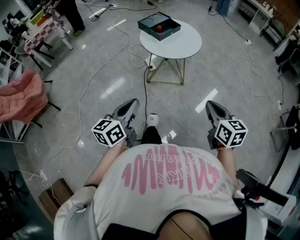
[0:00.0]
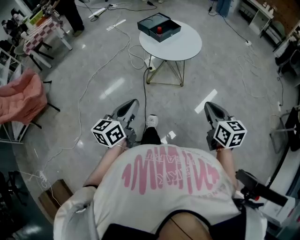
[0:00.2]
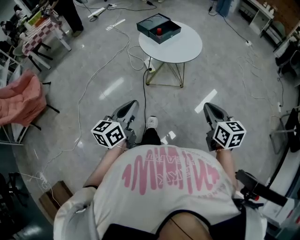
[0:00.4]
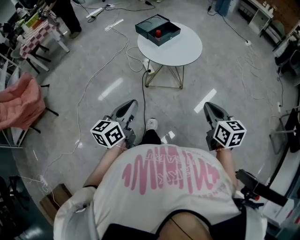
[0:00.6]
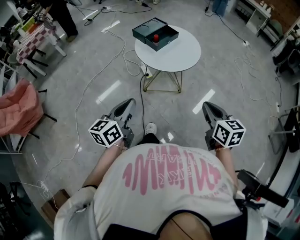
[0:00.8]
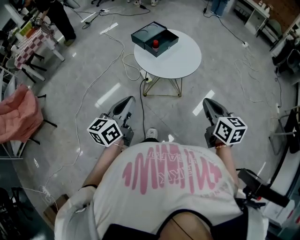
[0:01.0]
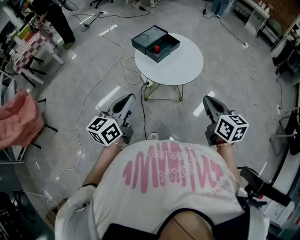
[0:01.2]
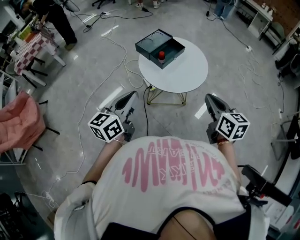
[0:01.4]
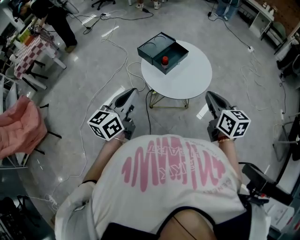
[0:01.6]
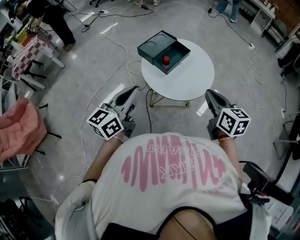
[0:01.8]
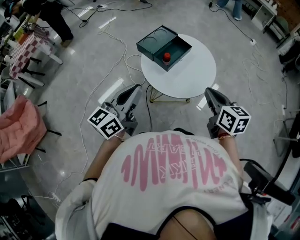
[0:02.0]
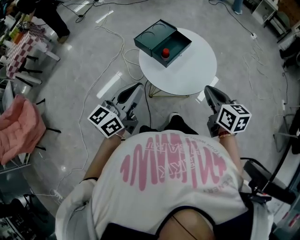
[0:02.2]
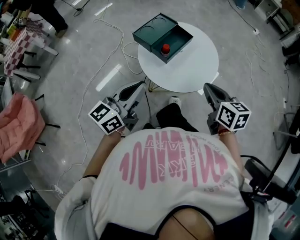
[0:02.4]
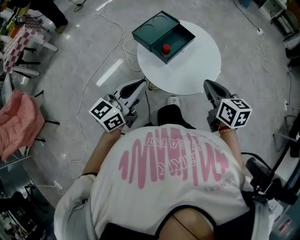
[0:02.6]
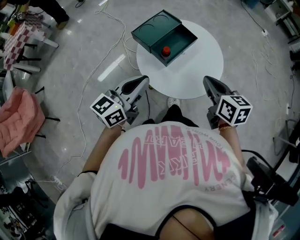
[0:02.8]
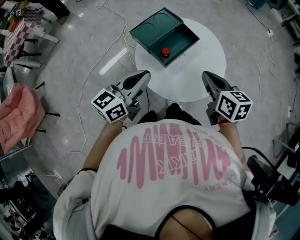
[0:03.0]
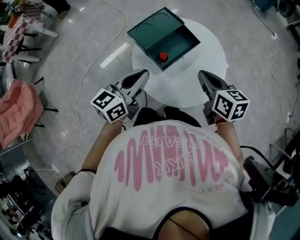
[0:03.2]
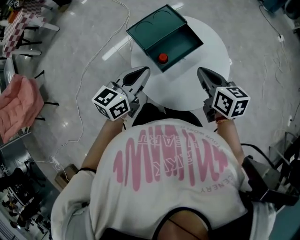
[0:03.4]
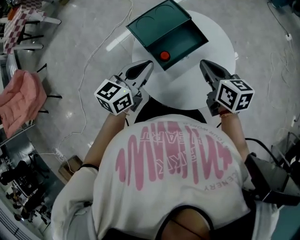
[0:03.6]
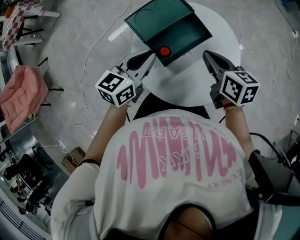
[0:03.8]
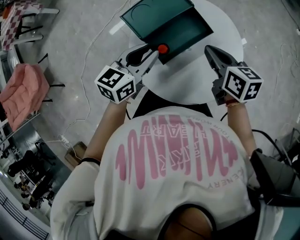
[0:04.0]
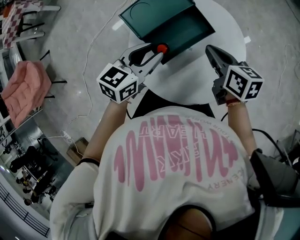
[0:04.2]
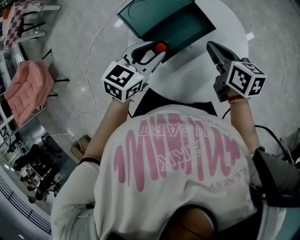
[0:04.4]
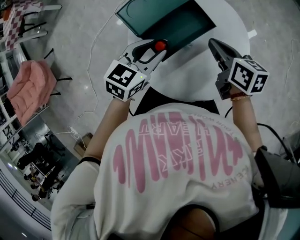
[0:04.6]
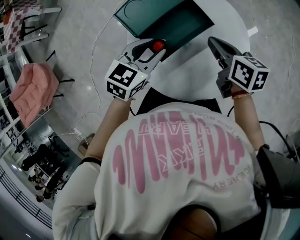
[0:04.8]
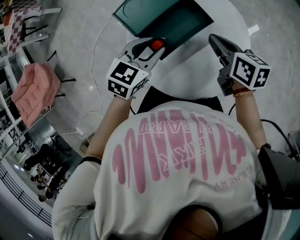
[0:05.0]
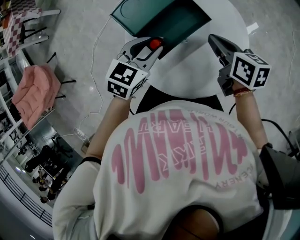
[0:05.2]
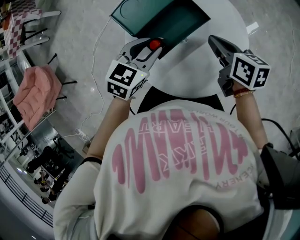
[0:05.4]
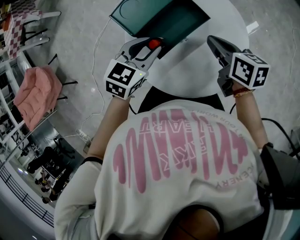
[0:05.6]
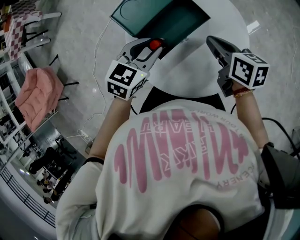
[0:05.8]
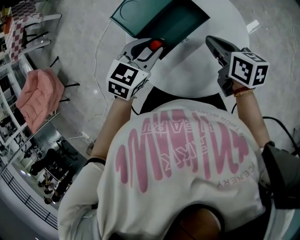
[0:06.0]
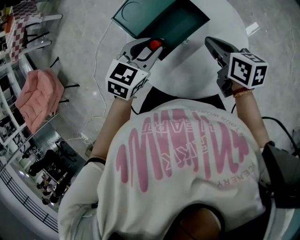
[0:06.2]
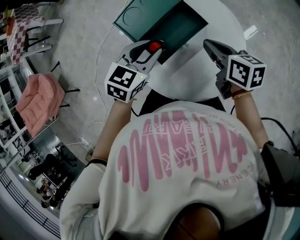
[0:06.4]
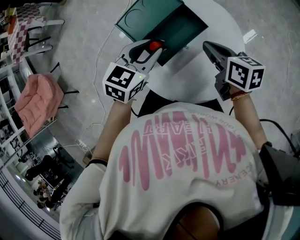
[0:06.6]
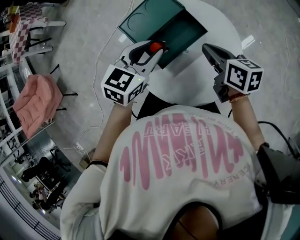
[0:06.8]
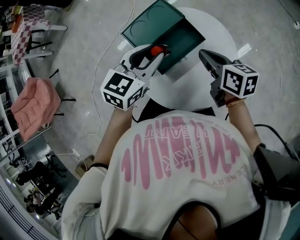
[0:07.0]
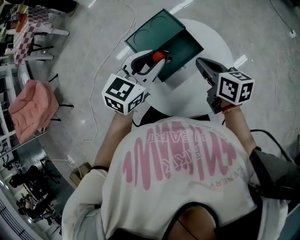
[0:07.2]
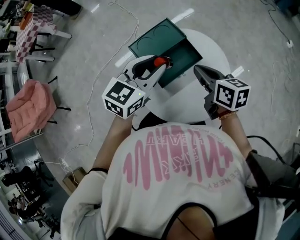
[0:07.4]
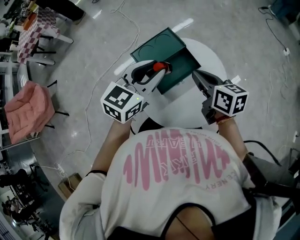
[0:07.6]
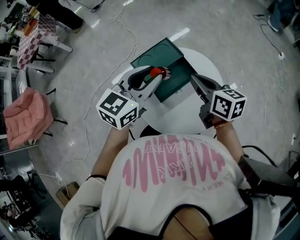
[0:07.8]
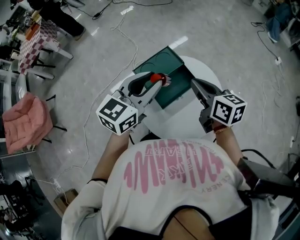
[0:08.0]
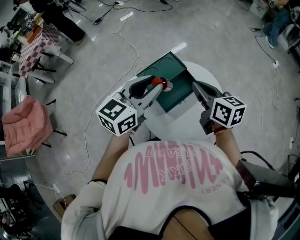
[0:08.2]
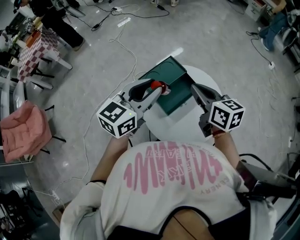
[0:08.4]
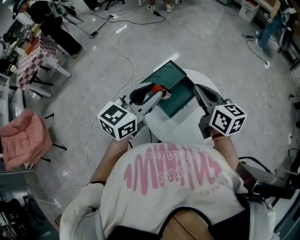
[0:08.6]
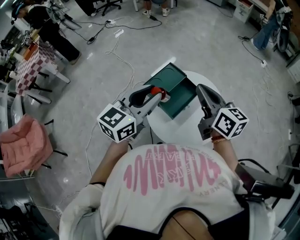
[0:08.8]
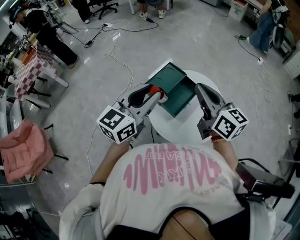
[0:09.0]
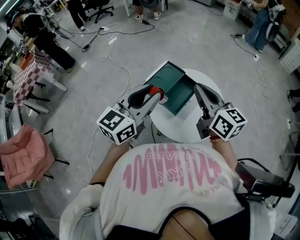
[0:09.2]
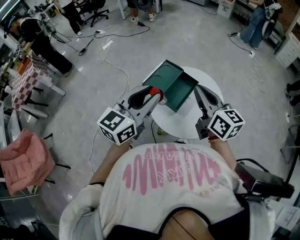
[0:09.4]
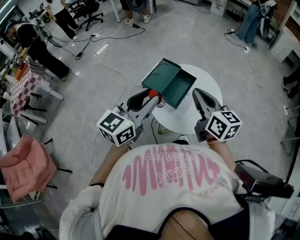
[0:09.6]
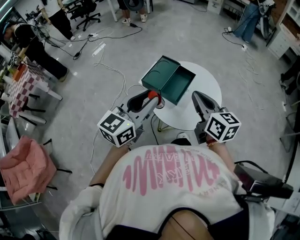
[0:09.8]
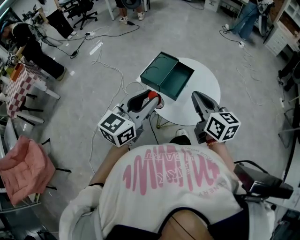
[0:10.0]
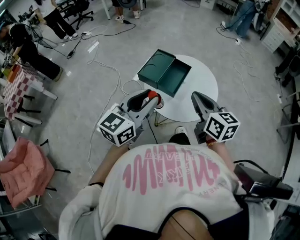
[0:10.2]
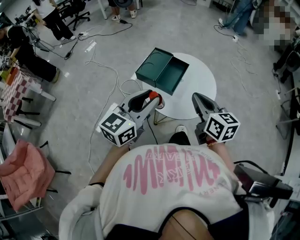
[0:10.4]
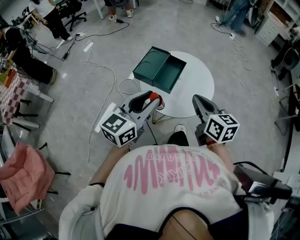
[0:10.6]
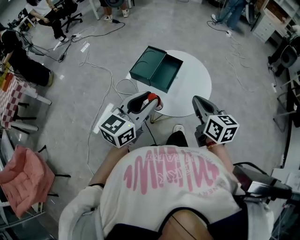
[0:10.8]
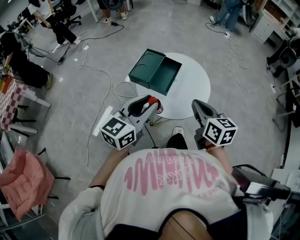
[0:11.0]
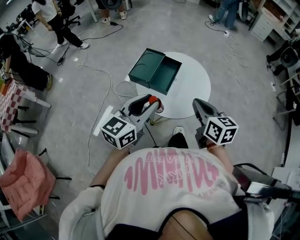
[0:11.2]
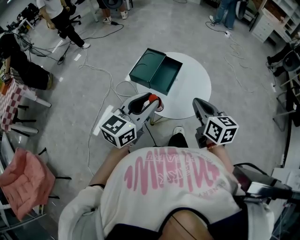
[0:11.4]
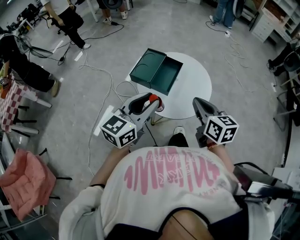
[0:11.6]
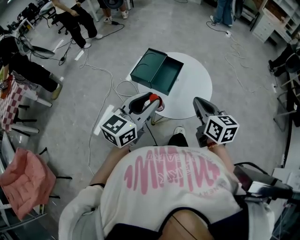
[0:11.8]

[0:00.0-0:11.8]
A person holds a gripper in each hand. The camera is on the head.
0:00.0 to 0:01.4: Both grippers travel together forward, roughly 30 cm.
0:01.4 to 0:03.0: Both grippers travel together forward, roughly 25 cm.
0:03.0 to 0:04.4: The grippers both shift forward and downward by roughly 25 cm. The left gripper tips its fingers downward by some 30 degrees, and opens up. The right gripper changes its angle by some 20 degrees.
0:04.4 to 0:06.0: The grippers stay close to where they were, moving slightly.
0:06.0 to 0:07.4: The two grippers go approximately 15 cm upward. The left gripper turns by approximately 20 degrees.
0:07.4 to 0:08.8: The left gripper shifts roughly 20 cm upward, to the left and backward. The right gripper travels upward and to the left by some 20 cm, and swivels some 30 degrees.
0:08.8 to 0:10.4: Both grippers travel together backward, about 20 cm. The right gripper changes its angle by some 20 degrees.
0:10.4 to 0:11.8: The grippers move only a little.

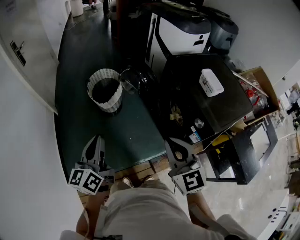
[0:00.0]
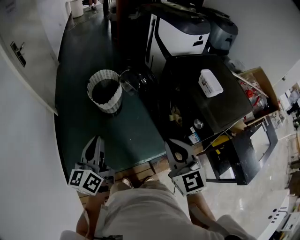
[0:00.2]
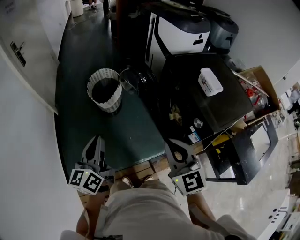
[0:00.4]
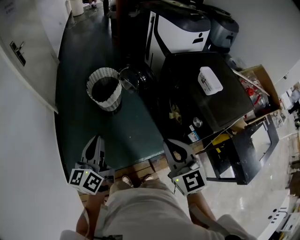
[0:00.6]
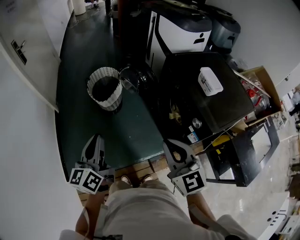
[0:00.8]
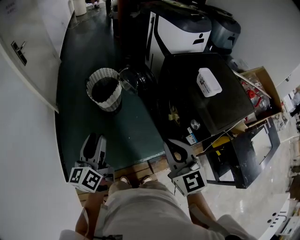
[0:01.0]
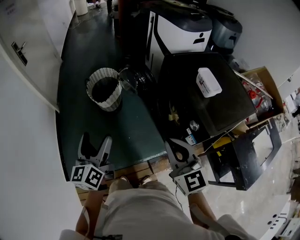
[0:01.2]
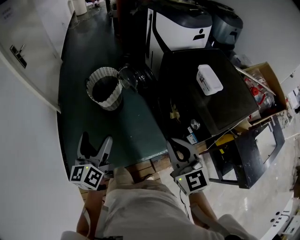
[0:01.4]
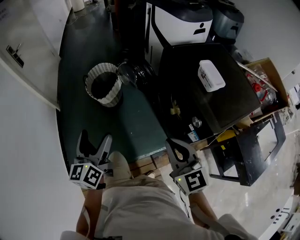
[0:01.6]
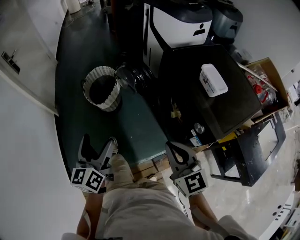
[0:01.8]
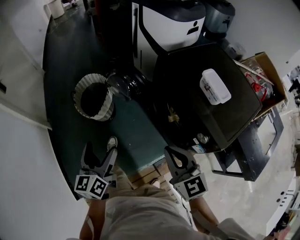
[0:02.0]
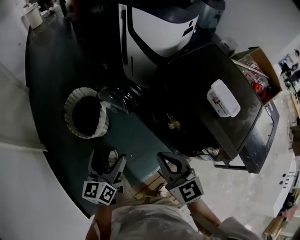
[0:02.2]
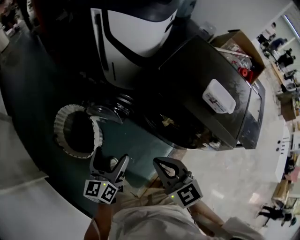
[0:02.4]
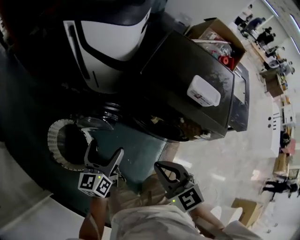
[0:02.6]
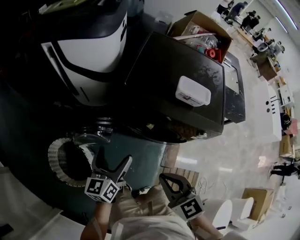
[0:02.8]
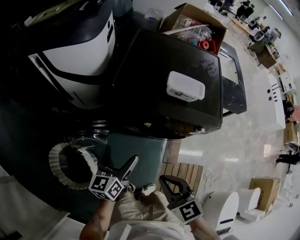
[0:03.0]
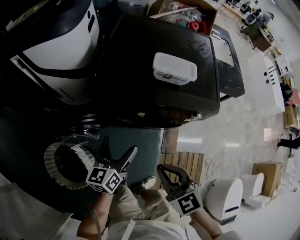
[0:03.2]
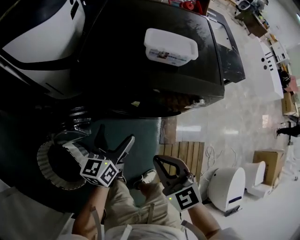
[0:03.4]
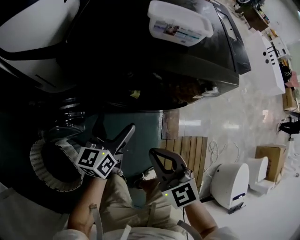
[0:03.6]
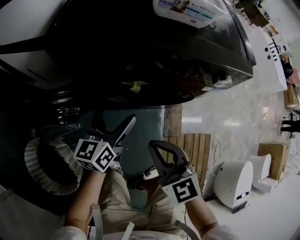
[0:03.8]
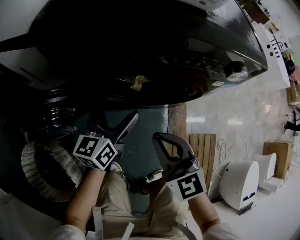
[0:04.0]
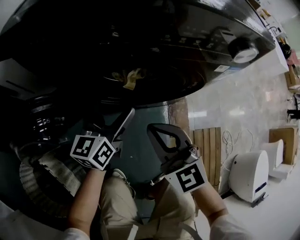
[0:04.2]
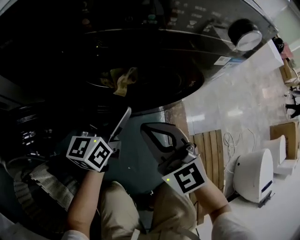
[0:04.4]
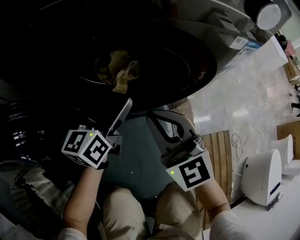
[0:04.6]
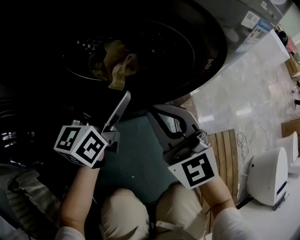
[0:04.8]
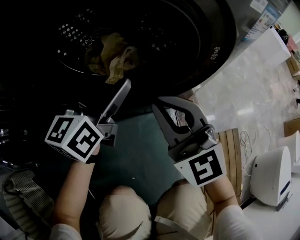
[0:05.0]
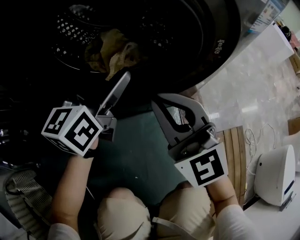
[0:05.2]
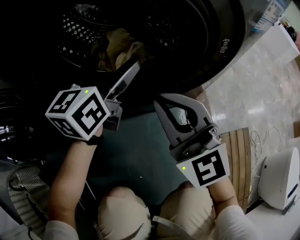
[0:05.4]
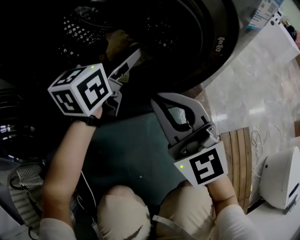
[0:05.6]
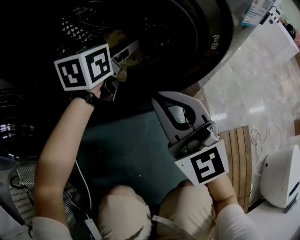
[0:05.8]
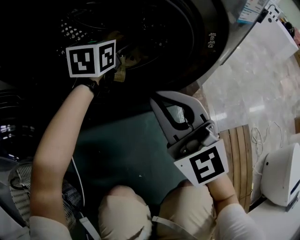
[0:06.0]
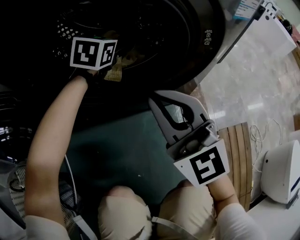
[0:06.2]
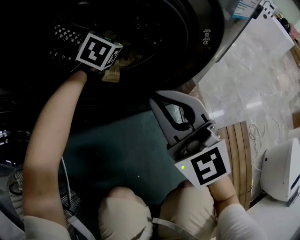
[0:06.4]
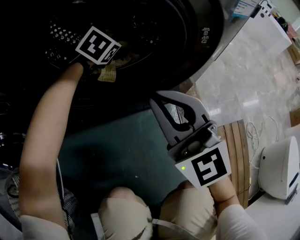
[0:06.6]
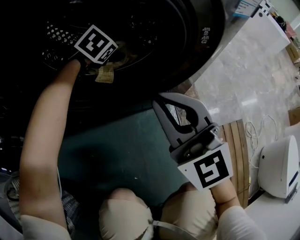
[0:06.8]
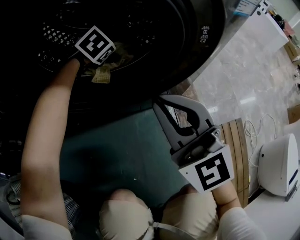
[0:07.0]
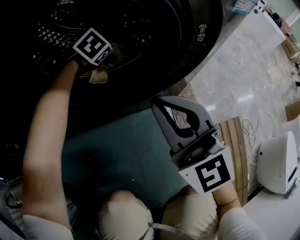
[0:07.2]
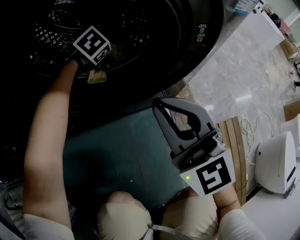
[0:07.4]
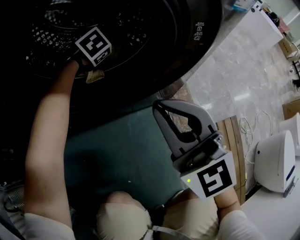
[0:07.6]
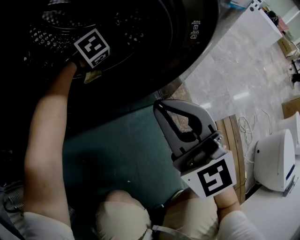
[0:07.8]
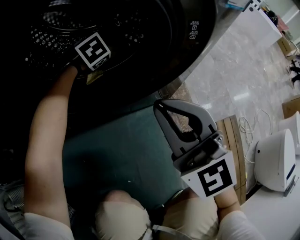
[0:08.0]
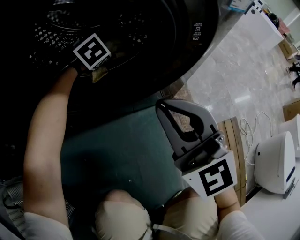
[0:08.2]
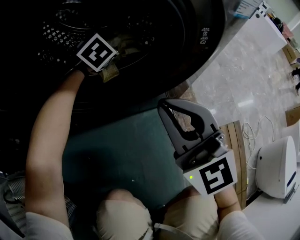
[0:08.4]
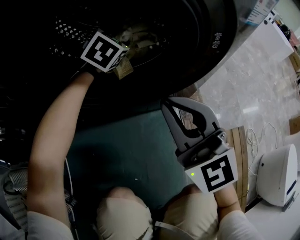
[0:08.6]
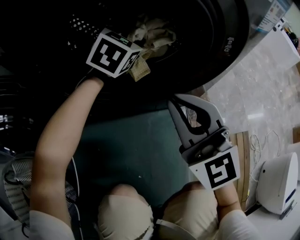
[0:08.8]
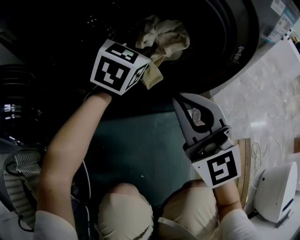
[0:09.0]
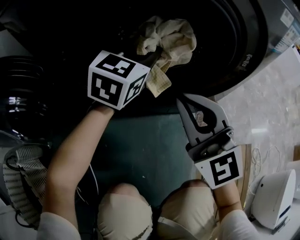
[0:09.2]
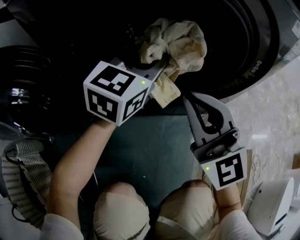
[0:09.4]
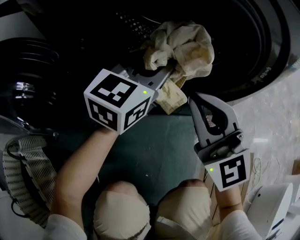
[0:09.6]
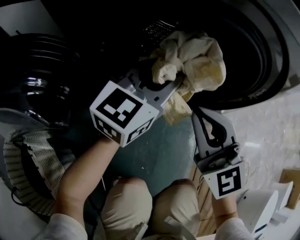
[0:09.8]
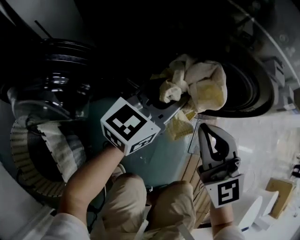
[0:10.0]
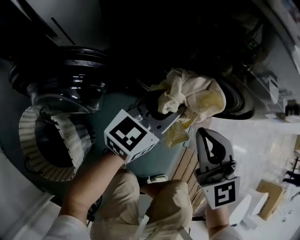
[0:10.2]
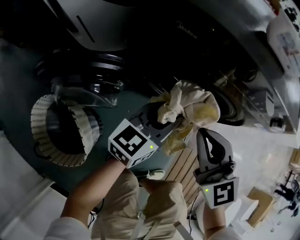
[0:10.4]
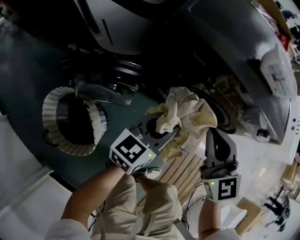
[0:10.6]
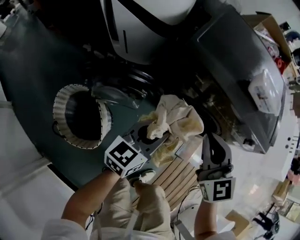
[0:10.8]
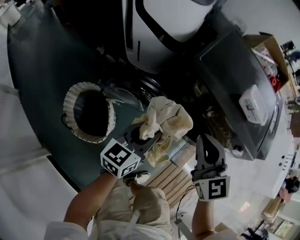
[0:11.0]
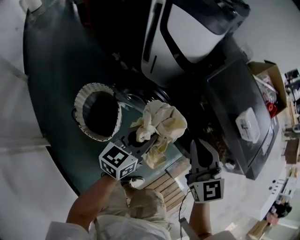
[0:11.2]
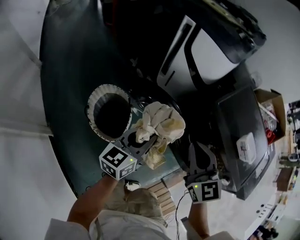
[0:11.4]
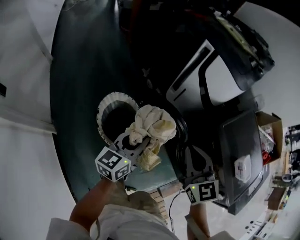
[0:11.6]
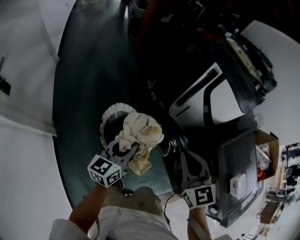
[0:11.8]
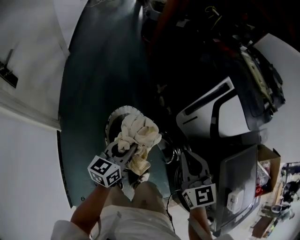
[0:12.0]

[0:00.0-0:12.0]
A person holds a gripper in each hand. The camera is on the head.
0:00.0 to 0:01.6: The grippers both shift to the right by approximately 5 cm. The left gripper opens its fingers.
0:01.6 to 0:03.0: The right gripper swings up and down, roughly 5 cm each way, with 2 reversals, and swivels roughly 50 degrees, while the left gripper shifts by about 40 cm, and turns by approximately 70 degrees.
0:03.0 to 0:04.4: The grippers both shift downward by about 40 cm. The left gripper swivels some 20 degrees. Meanwhile the right gripper rotates about 20 degrees.
0:04.4 to 0:06.0: The left gripper is displaced forward, downward and to the right by roughly 20 cm, and changes its angle by roughly 30 degrees. Meanwhile the right gripper moves downward and to the right, about 10 cm, and swivels some 20 degrees.
0:06.0 to 0:07.6: The left gripper goes some 15 cm downward, and tips its fingers downward by about 40 degrees.
0:07.6 to 0:09.0: The right gripper shifts roughly 5 cm to the left, while the left gripper heads upward and backward, covering approximately 20 cm, points its fingers roughly 40 degrees further upward, and closes.
0:09.0 to 0:10.4: The right gripper reaches approximately 10 cm upward, then returns, and turns by about 20 degrees. The left gripper moves some 10 cm upward and comes back, and changes its angle by approximately 40 degrees.
0:10.4 to 0:12.0: The two grippers travel together, approximately 50 cm. The left gripper swivels some 80 degrees. The right gripper turns by roughly 50 degrees.
